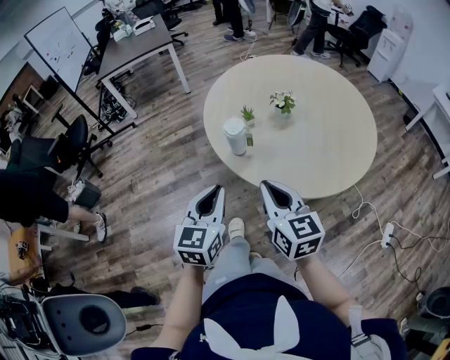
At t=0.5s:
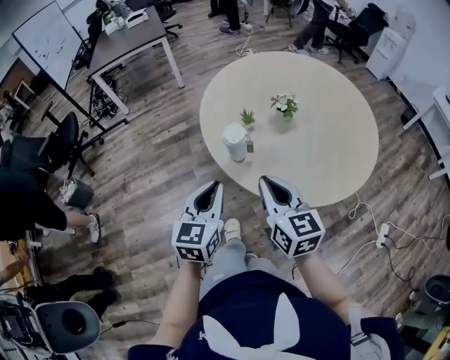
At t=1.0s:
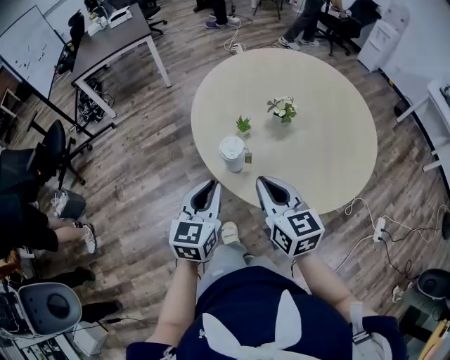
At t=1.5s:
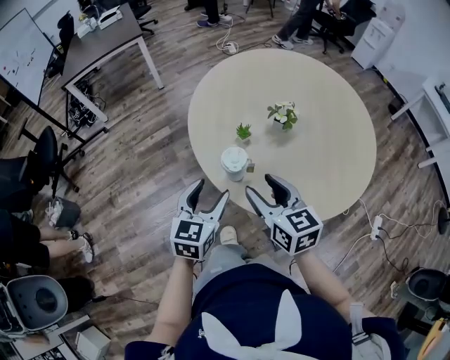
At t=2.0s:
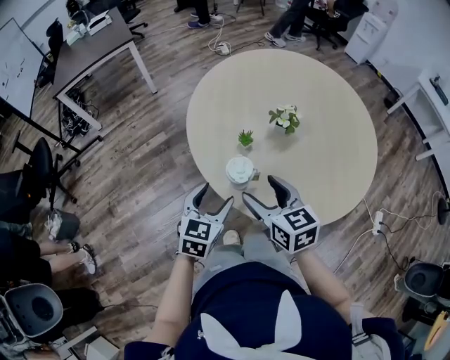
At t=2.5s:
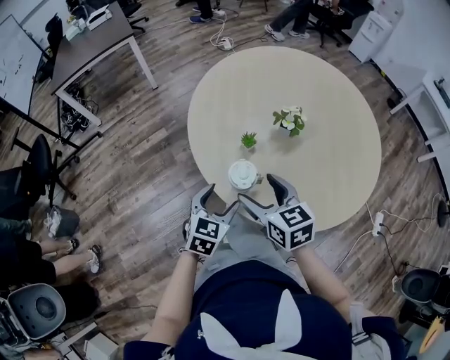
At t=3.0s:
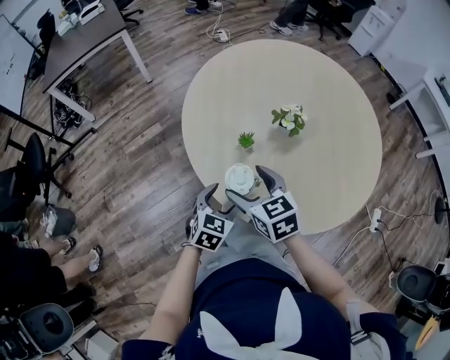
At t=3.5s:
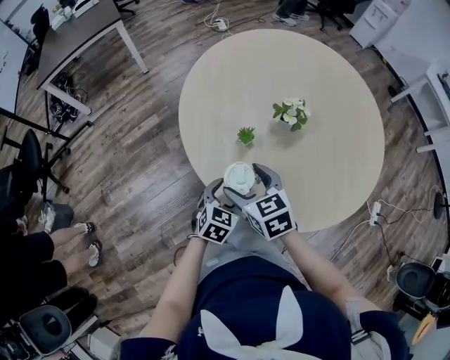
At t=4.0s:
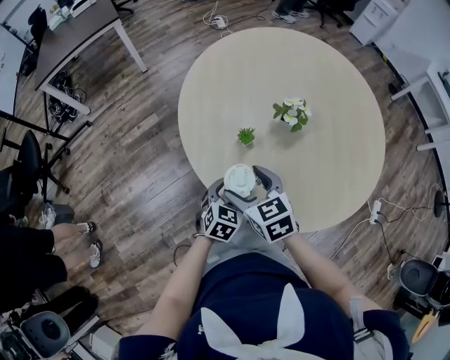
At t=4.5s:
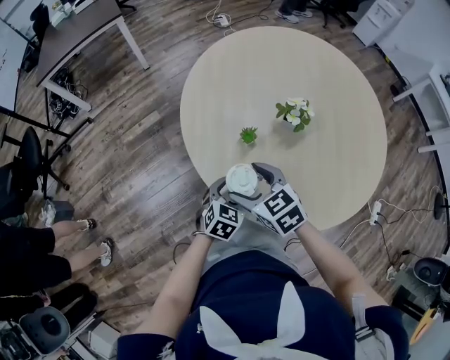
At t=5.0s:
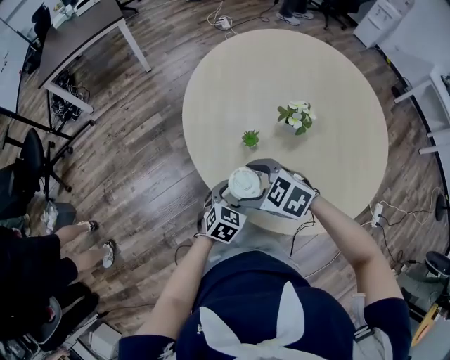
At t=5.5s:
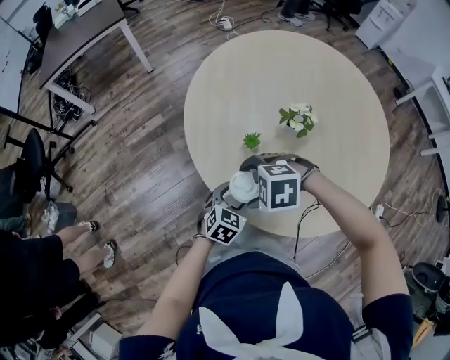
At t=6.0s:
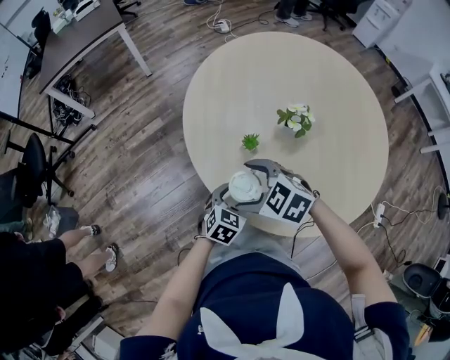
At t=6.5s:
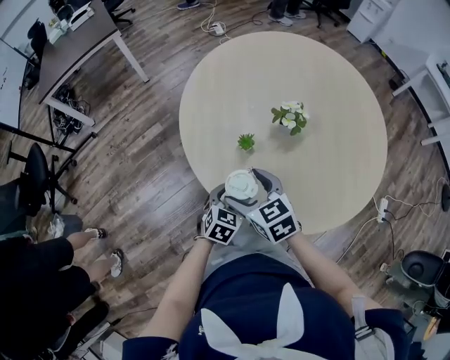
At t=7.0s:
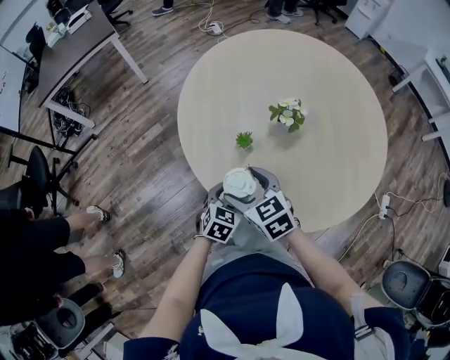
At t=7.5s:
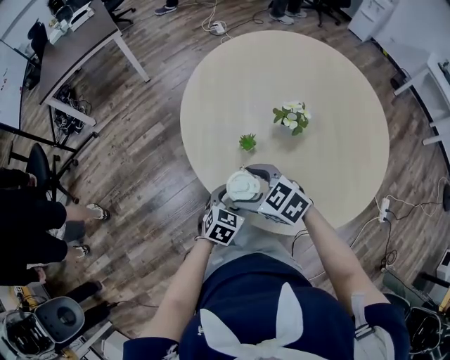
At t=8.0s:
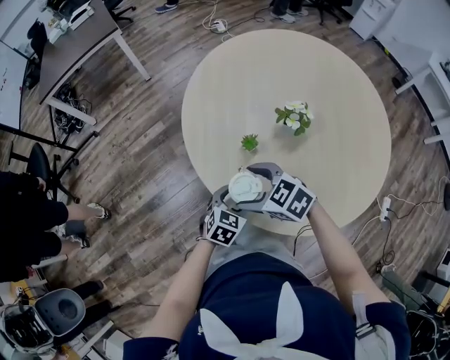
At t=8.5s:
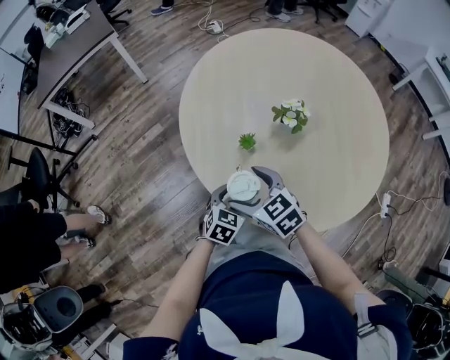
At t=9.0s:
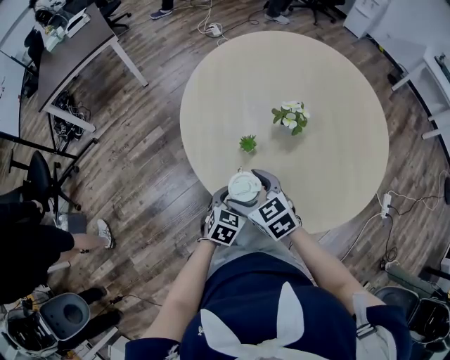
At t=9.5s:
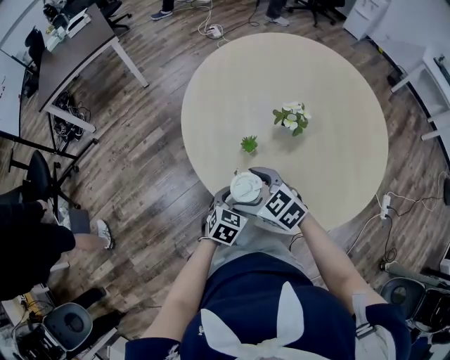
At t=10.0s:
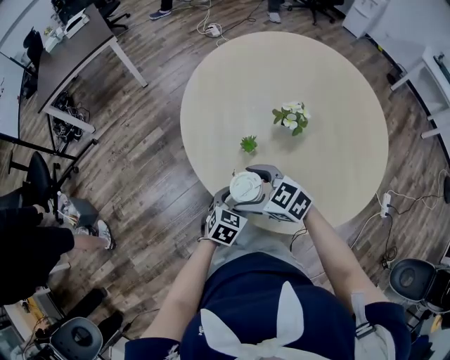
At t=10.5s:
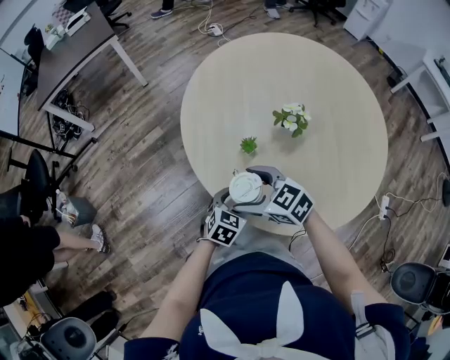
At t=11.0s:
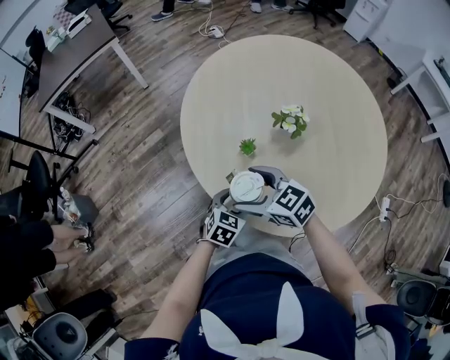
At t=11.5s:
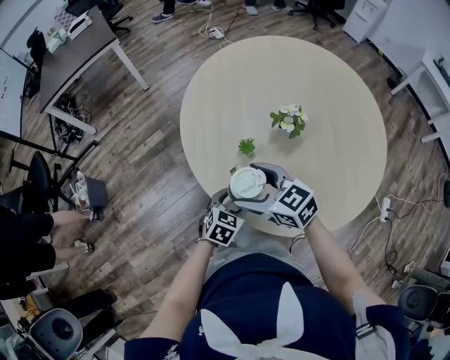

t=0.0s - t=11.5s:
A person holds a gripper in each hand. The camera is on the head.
t=0.0s - t=2.0s: The right gripper heads forward, covering roughly 20 cm, and opens. The left gripper goes roughly 25 cm forward and downward, rotates roughly 20 degrees, and opens.
t=2.0s - t=4.0s: The left gripper travels downward, to the right and forward by about 15 cm. The right gripper shifts roughly 10 cm downward and forward.
t=4.0s - t=6.0s: The right gripper changes its angle by approximately 40 degrees.
t=9.5s - t=11.5s: The right gripper moves upward, some 5 cm.

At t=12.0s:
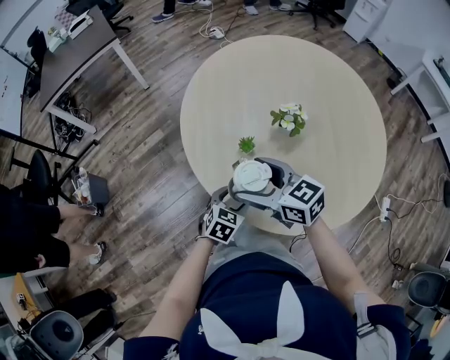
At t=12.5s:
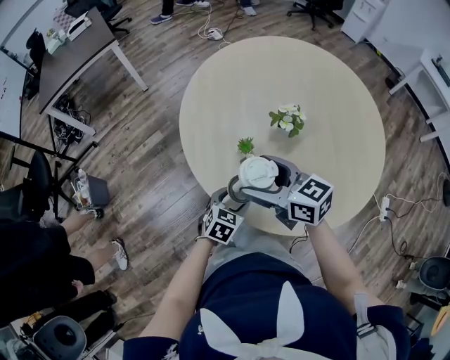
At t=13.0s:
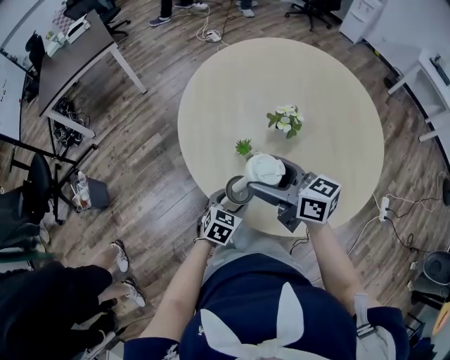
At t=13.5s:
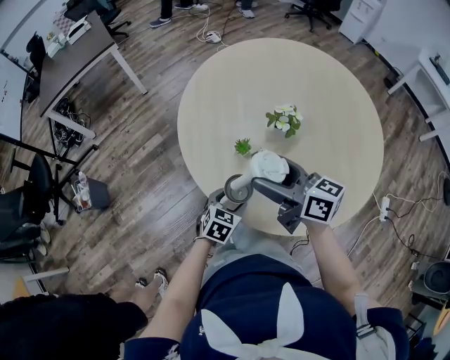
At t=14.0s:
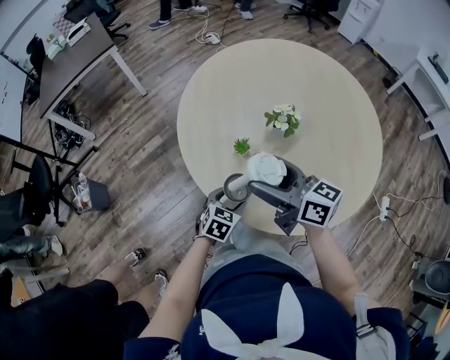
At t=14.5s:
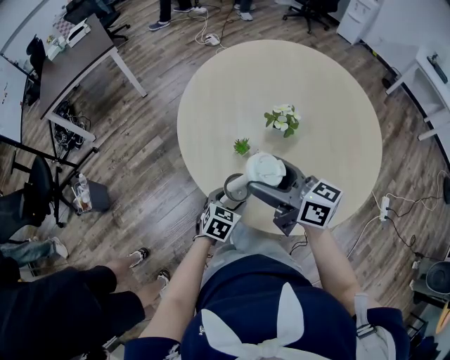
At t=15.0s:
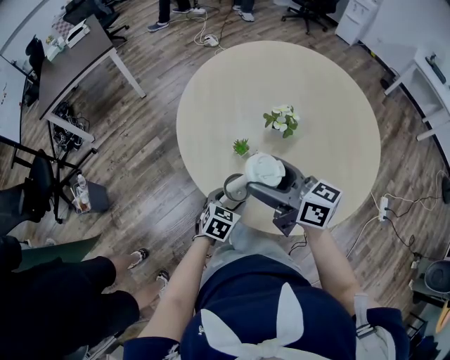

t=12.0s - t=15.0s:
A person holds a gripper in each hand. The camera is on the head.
t=12.0s - t=13.5s: The right gripper moves to the right and upward, roughly 5 cm, and swivels roughly 30 degrees.
t=13.5s - t=15.0s: The grippers stay close to where they were, moving slightly.

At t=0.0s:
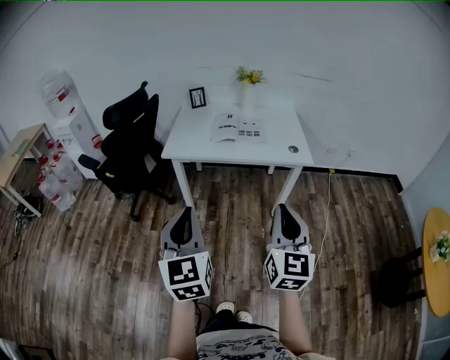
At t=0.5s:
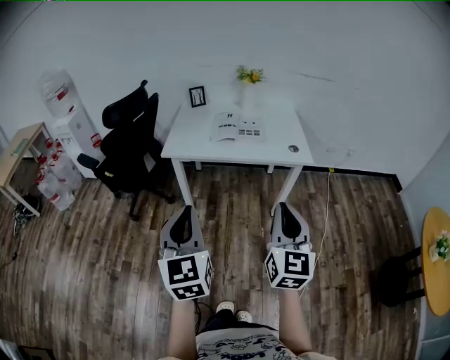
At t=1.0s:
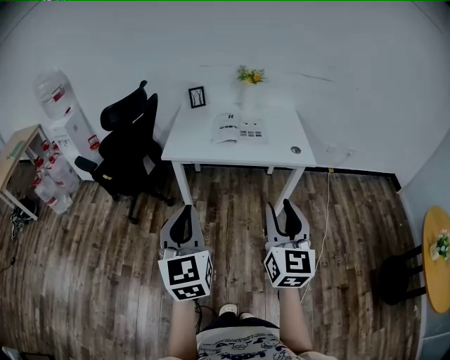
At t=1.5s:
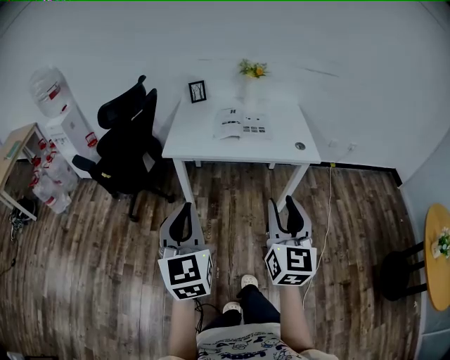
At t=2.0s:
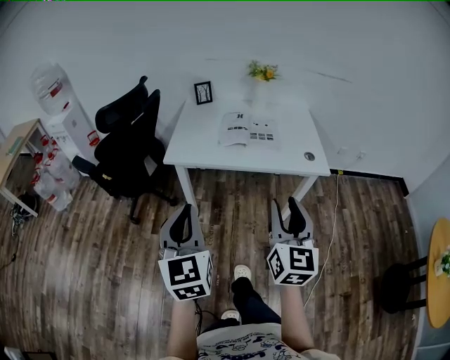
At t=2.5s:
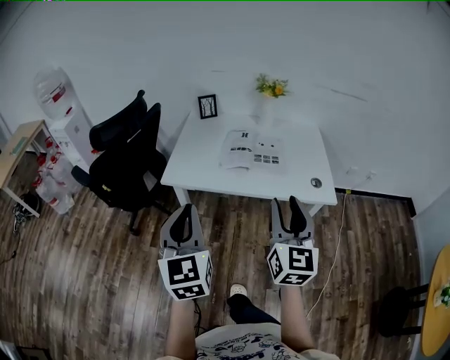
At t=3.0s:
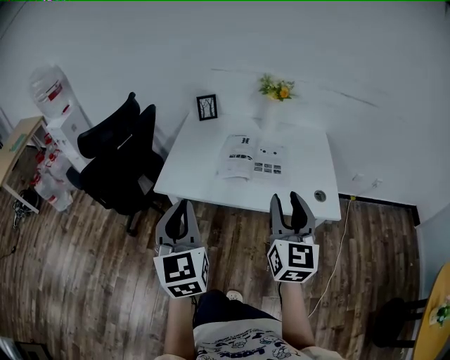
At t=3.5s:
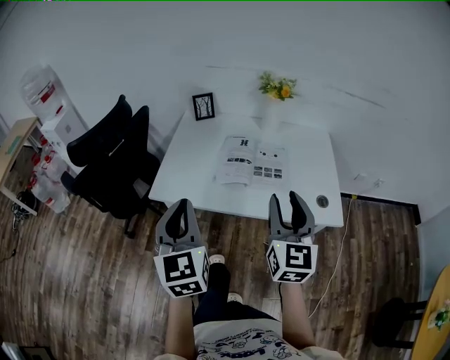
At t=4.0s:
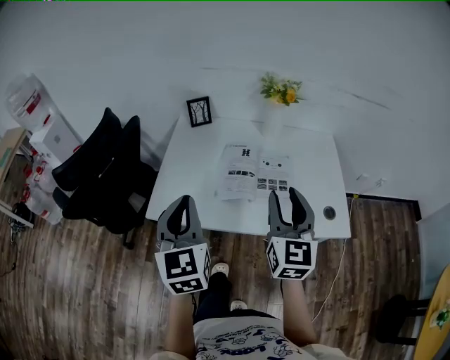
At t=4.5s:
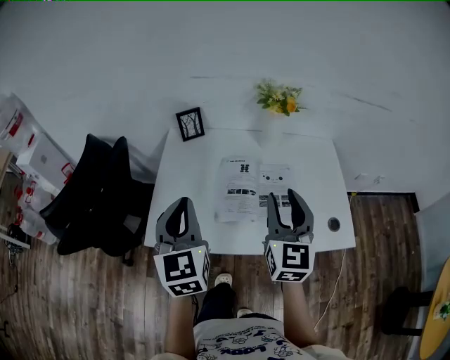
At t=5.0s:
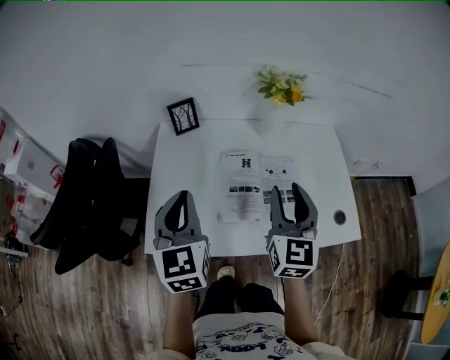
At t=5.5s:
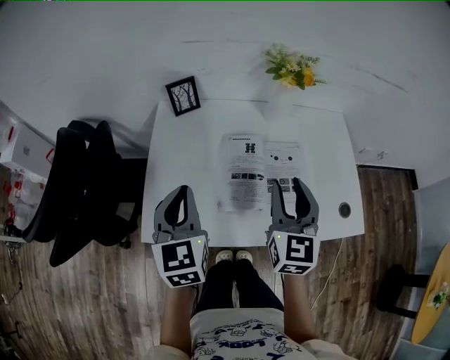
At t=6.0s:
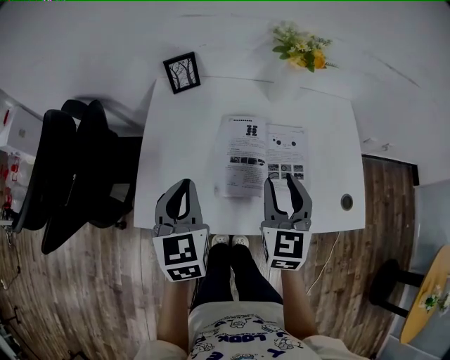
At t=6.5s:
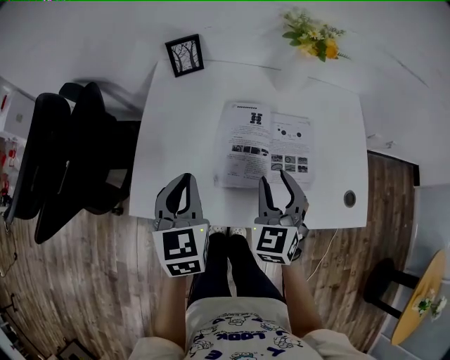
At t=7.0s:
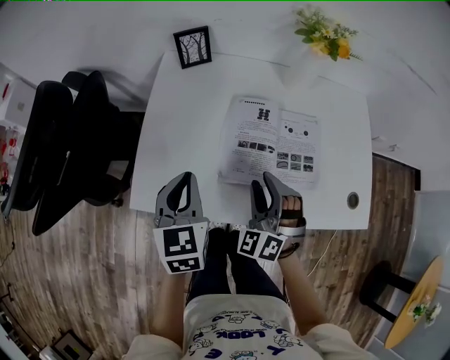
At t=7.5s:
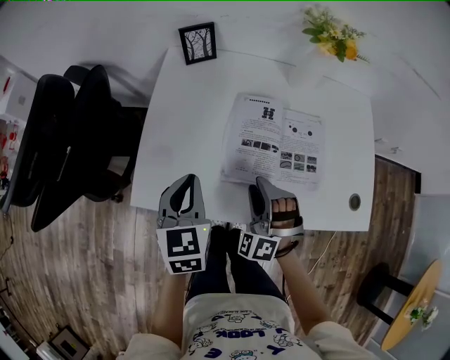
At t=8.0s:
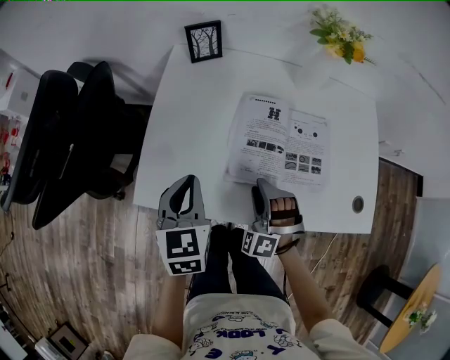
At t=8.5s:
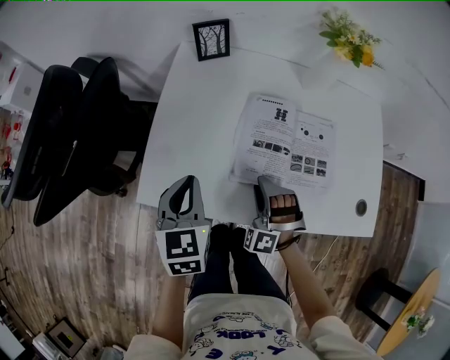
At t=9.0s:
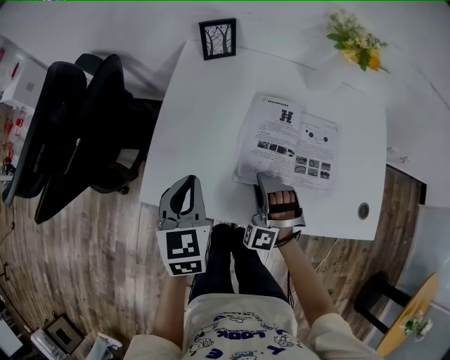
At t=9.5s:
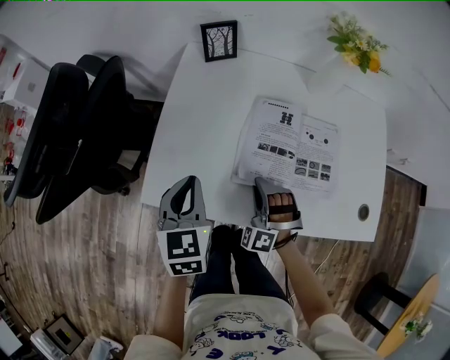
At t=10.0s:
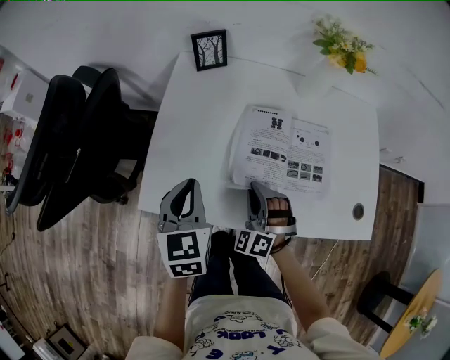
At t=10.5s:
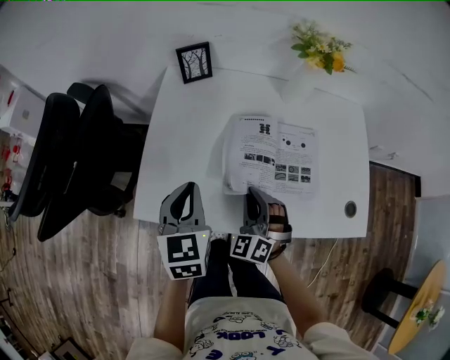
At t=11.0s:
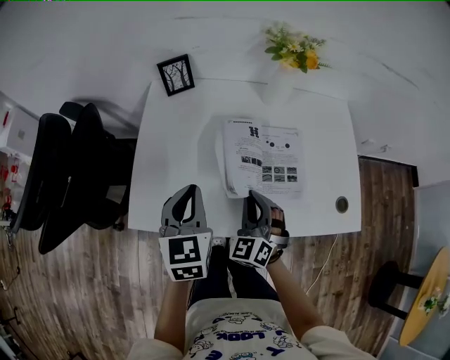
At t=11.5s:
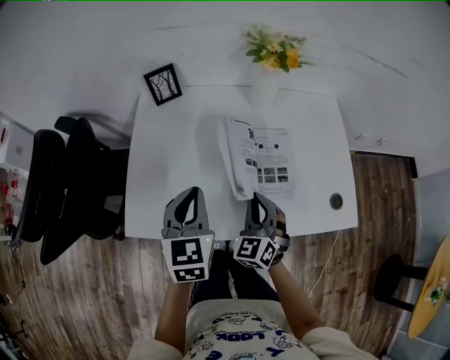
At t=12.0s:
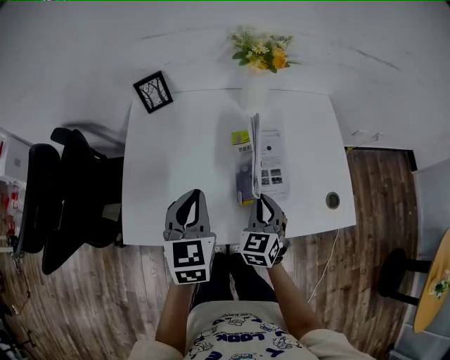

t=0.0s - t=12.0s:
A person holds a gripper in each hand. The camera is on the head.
t=0.0s - t=2.0s: Both grippers move forward, some 15 cm. The right gripper opens up.
t=2.0s - t=4.0s: Both grippers move forward, some 40 cm.
t=4.0s - t=6.0s: Both grippers travel together forward and downward, approximately 20 cm.
t=6.0s - t=8.0s: The left gripper moves downward, some 5 cm, while the right gripper travels downward by roughly 20 cm, and twists about 70 degrees counterclockwise, seen from behind.
t=8.0s - t=10.0s: The right gripper closes up.
t=10.0s - t=12.0s: The two grippers go about 15 cm to the right. The right gripper twists approximately 50 degrees clockwise, seen from behind.
